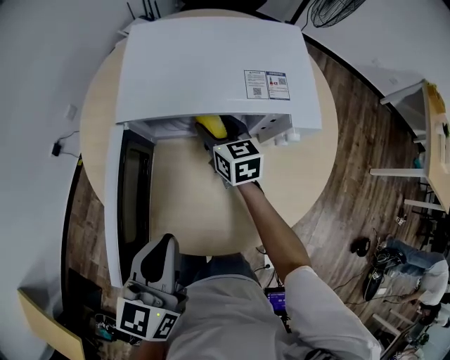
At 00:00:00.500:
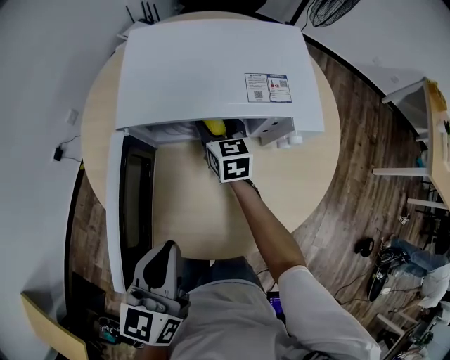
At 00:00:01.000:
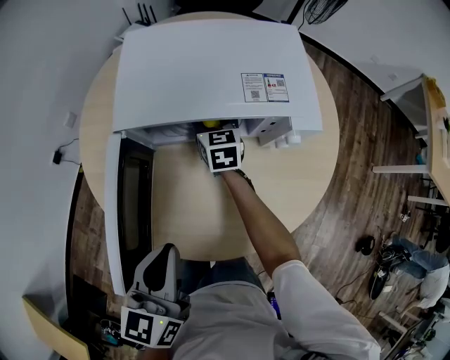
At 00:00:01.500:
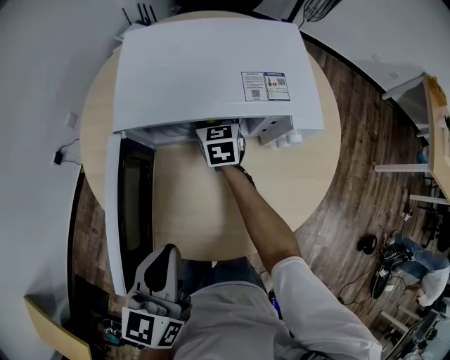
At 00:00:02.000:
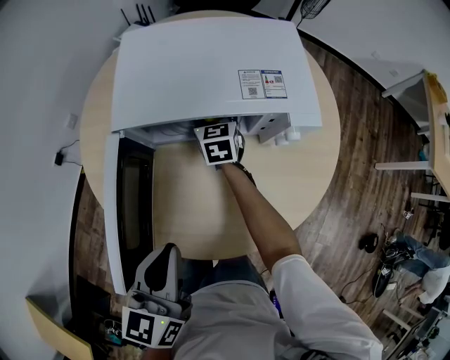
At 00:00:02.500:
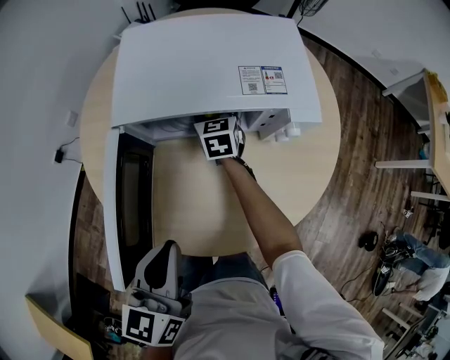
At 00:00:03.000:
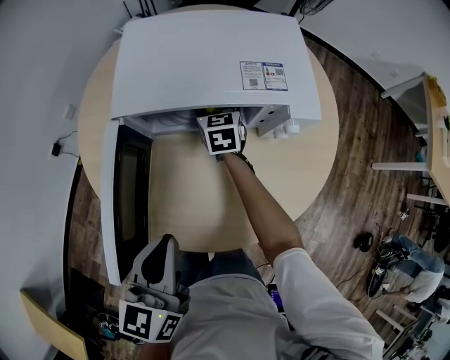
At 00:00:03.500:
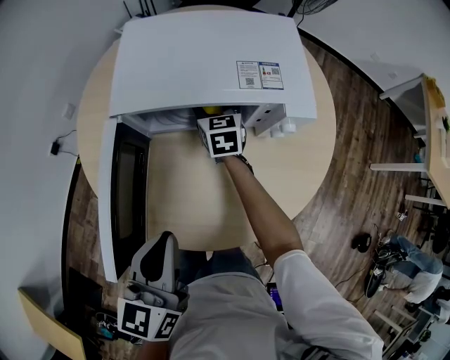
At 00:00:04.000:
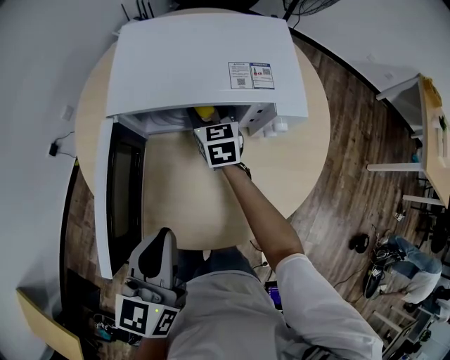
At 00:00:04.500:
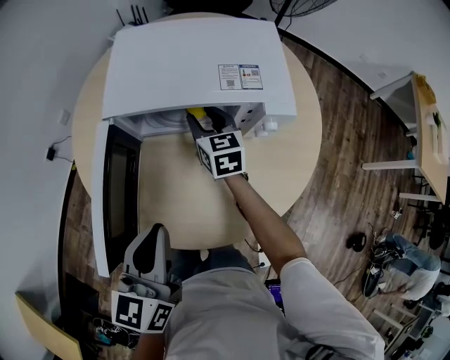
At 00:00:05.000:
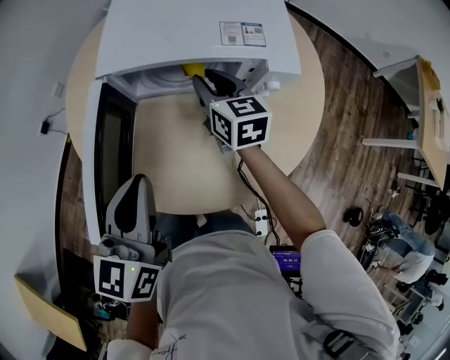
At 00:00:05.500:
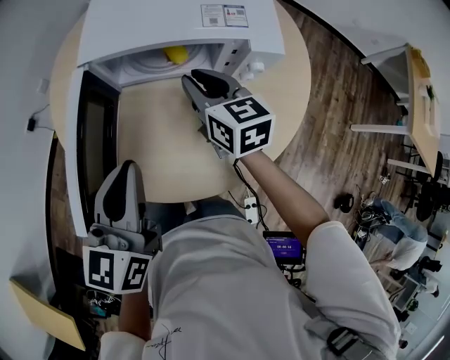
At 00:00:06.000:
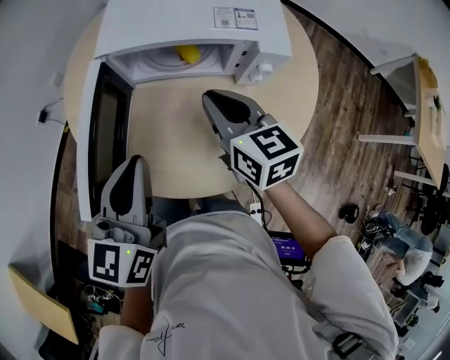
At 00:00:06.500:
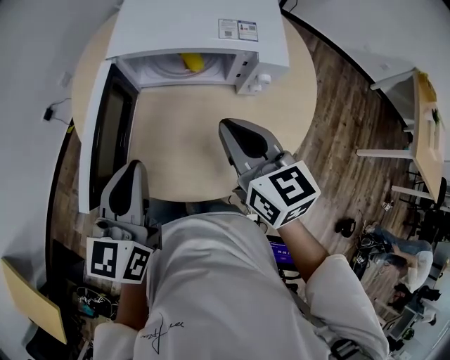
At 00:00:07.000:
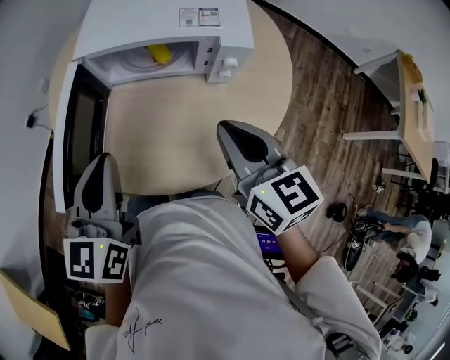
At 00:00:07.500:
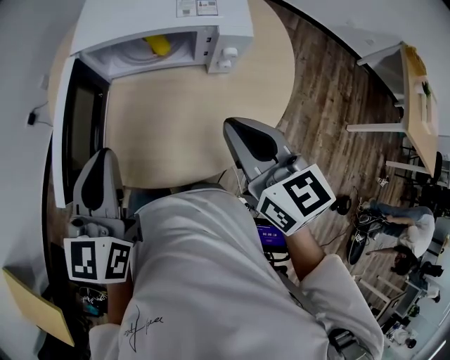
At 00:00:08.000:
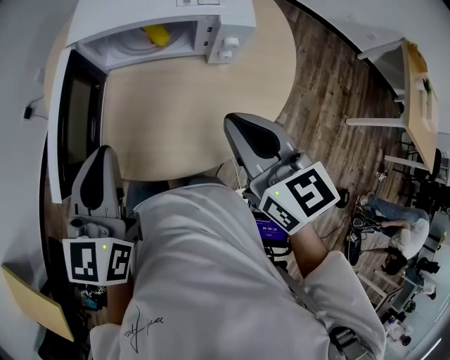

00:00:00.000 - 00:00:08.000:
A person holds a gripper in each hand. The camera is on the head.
00:00:00.000 - 00:00:02.000: The right gripper is displaced forward by roughly 5 cm.
00:00:02.000 - 00:00:04.000: The right gripper ends up about 5 cm from where it was.
00:00:04.000 - 00:00:06.000: The right gripper shifts some 25 cm backward and upward, and closes up.
00:00:06.000 - 00:00:08.000: The right gripper goes about 15 cm backward, to the right and upward.

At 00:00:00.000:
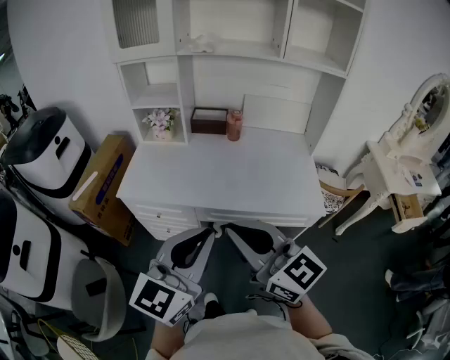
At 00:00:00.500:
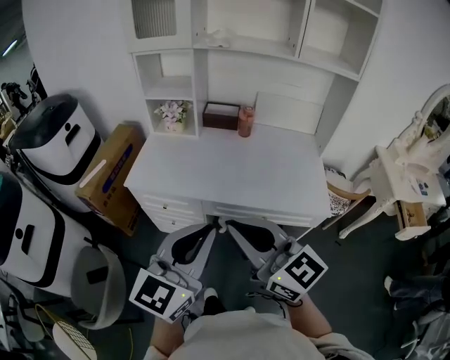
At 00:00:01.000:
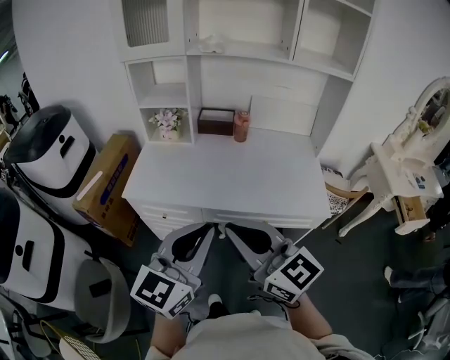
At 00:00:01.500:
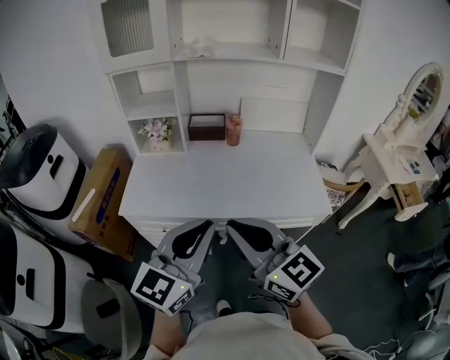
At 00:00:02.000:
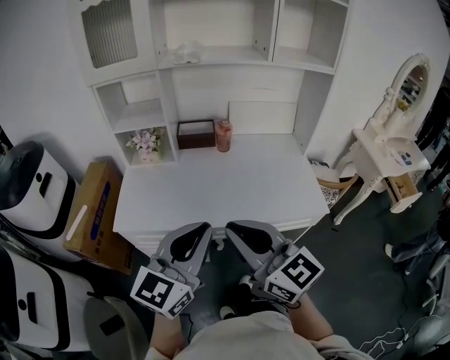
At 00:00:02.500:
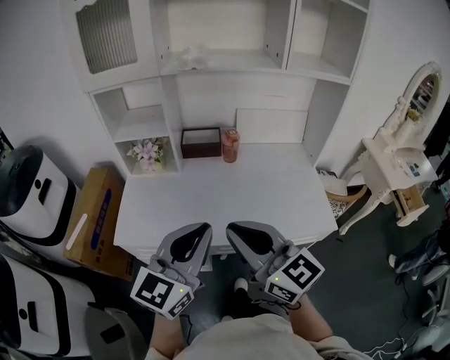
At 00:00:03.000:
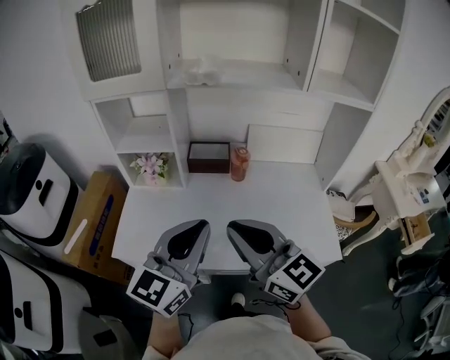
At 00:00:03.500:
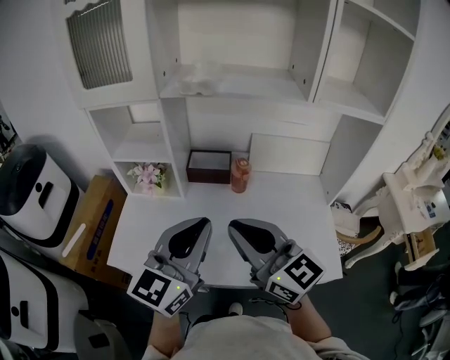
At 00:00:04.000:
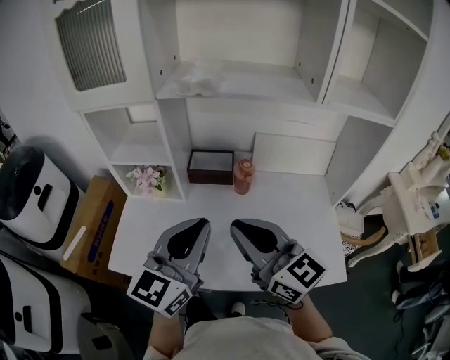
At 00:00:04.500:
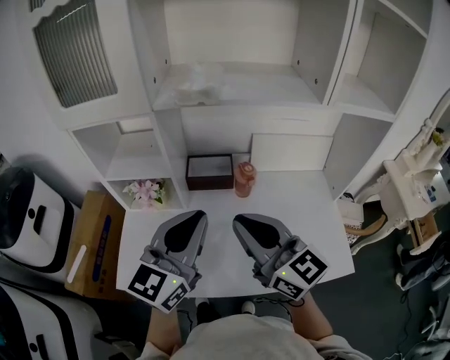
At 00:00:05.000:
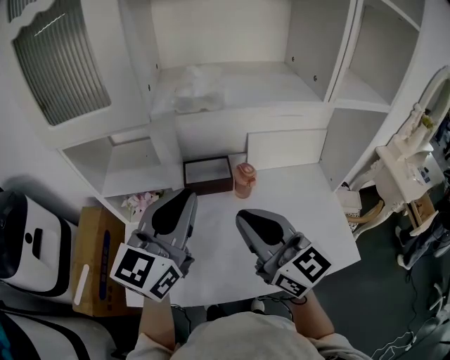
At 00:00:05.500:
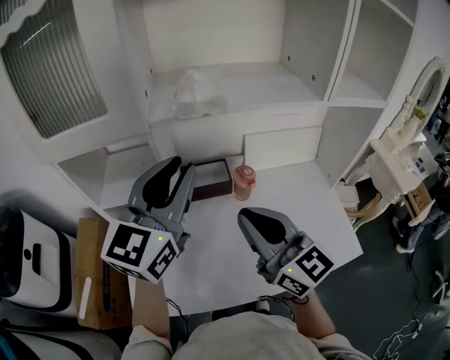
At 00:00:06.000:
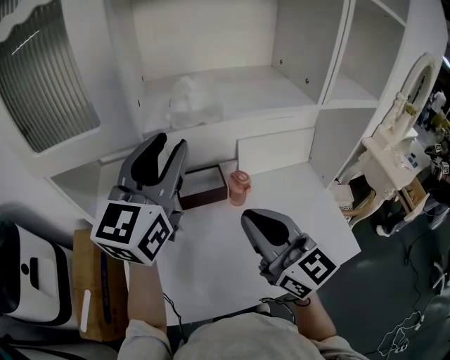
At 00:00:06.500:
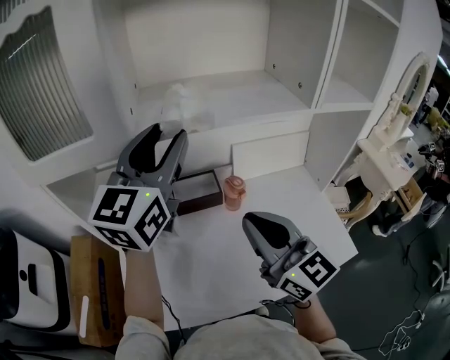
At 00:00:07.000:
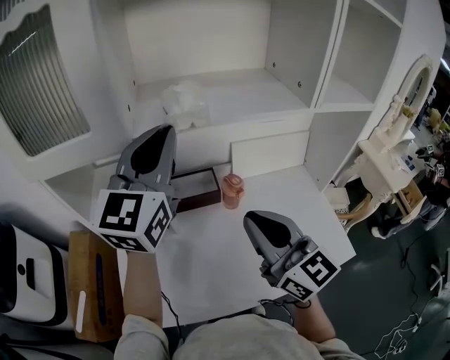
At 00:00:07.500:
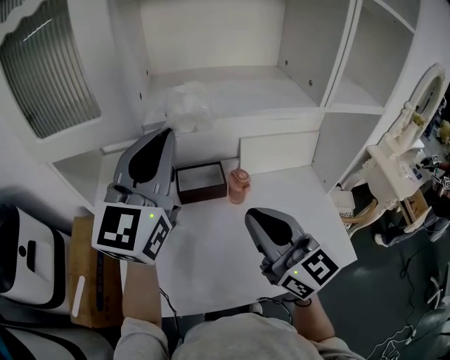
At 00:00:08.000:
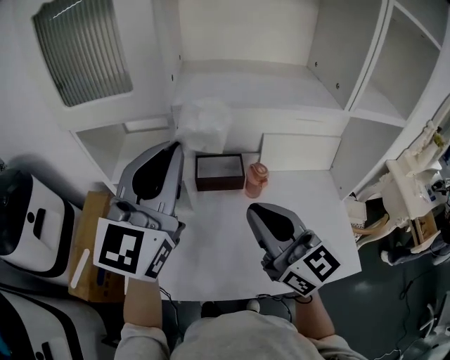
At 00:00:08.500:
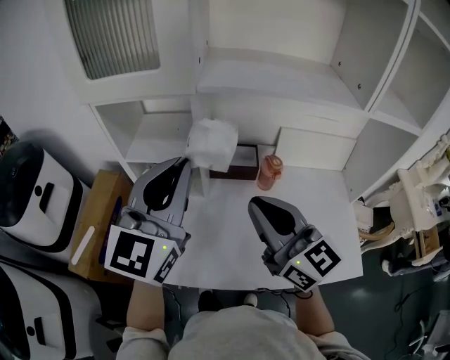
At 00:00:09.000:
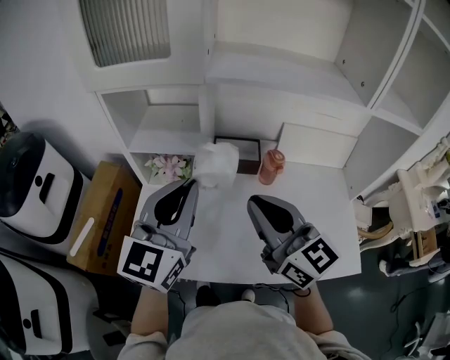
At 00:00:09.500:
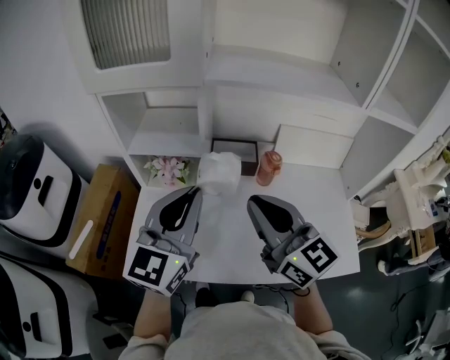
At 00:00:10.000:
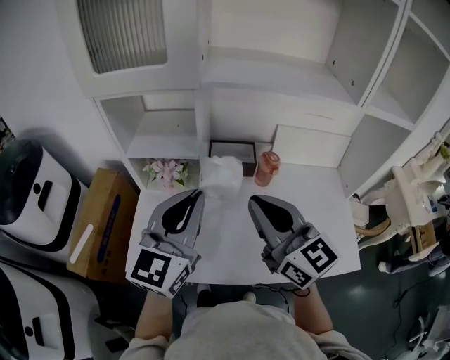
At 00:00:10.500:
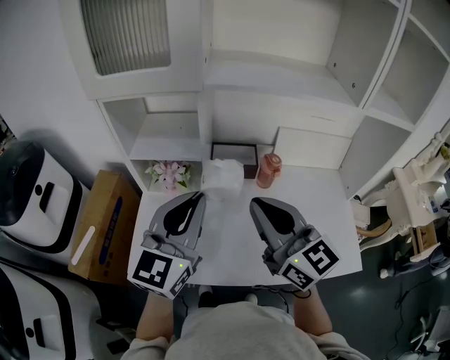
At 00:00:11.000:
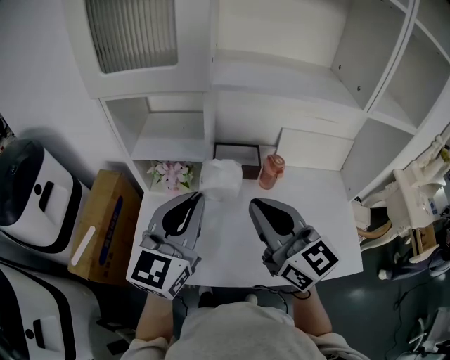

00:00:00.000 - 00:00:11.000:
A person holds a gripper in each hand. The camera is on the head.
00:00:00.000 - 00:00:02.000: Both grippers travel together forward, some 10 cm.
00:00:02.000 - 00:00:03.500: The two grippers go approximately 25 cm forward.
00:00:03.500 - 00:00:05.500: The right gripper is displaced forward and to the left by about 15 cm. Meanwhile the left gripper moves forward and upward, some 20 cm.
00:00:05.500 - 00:00:07.500: The left gripper shifts some 5 cm upward, and opens and closes again.
00:00:07.500 - 00:00:09.000: The left gripper moves downward, backward and to the left, roughly 20 cm. Meanwhile the right gripper heads to the left, covering roughly 5 cm.
00:00:09.000 - 00:00:11.000: There are only small adjustments of the grippers.

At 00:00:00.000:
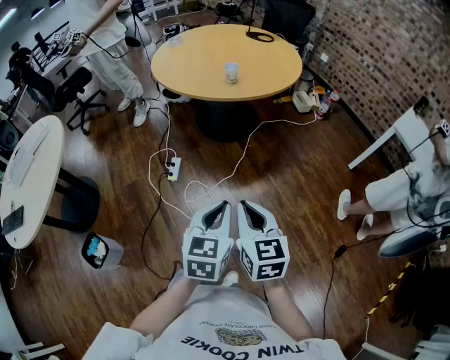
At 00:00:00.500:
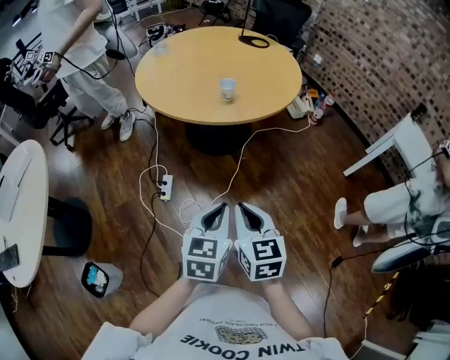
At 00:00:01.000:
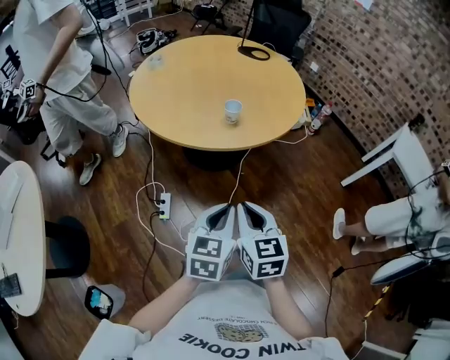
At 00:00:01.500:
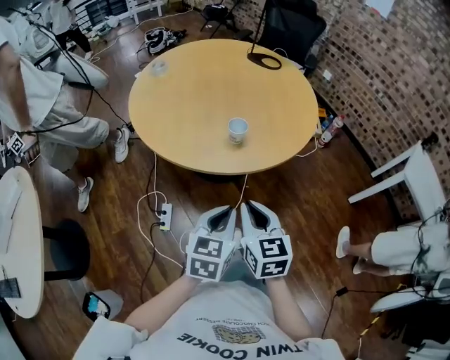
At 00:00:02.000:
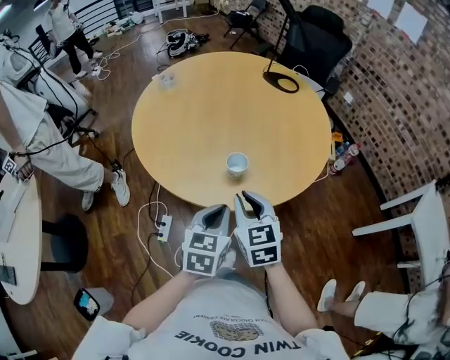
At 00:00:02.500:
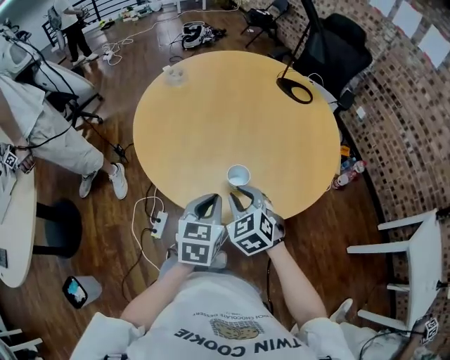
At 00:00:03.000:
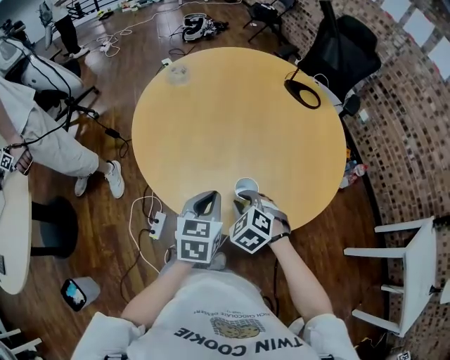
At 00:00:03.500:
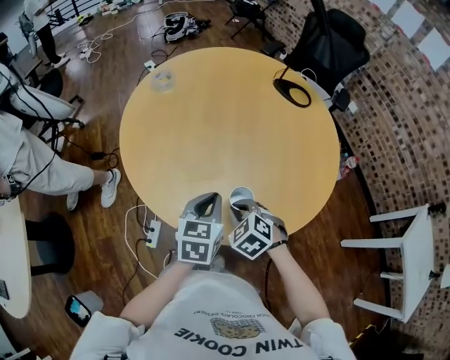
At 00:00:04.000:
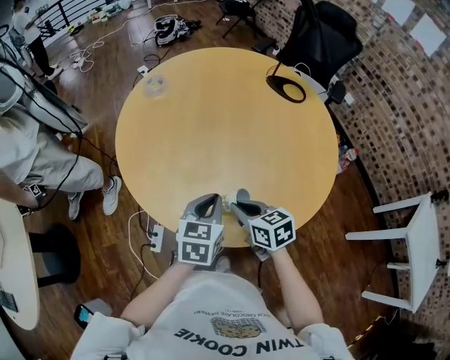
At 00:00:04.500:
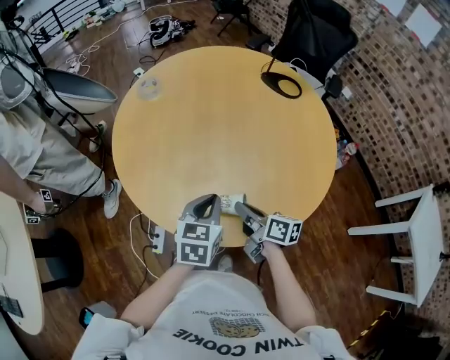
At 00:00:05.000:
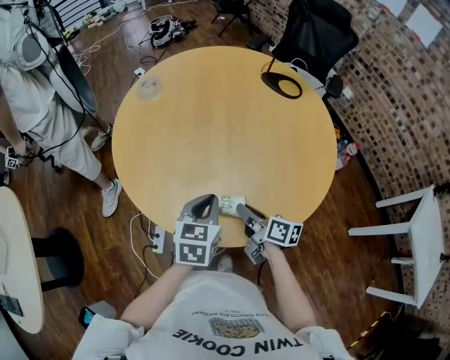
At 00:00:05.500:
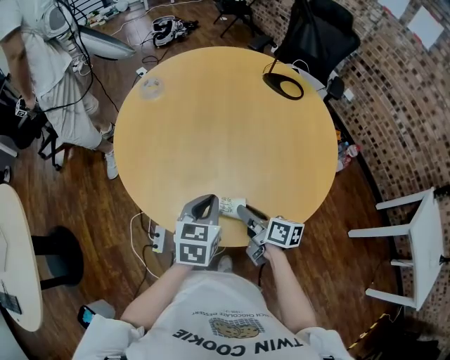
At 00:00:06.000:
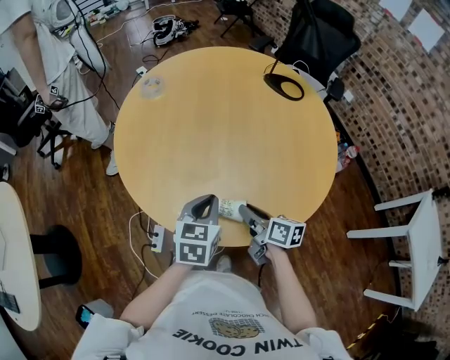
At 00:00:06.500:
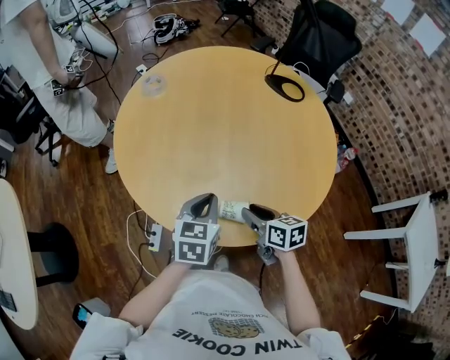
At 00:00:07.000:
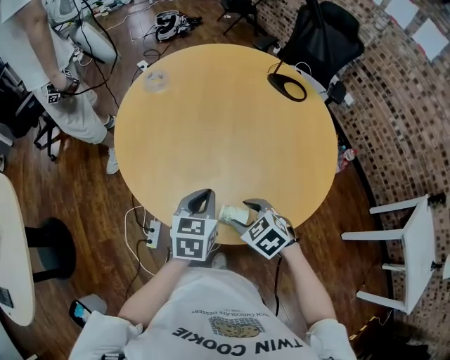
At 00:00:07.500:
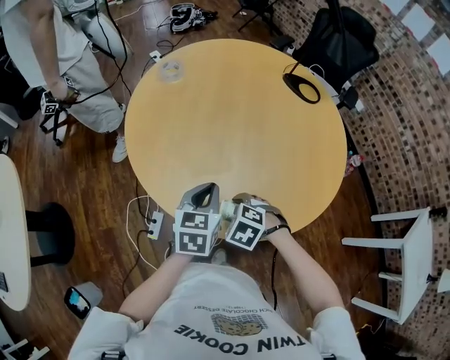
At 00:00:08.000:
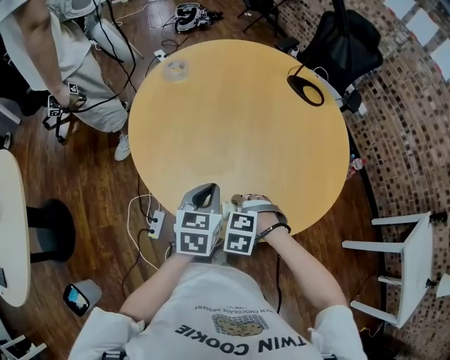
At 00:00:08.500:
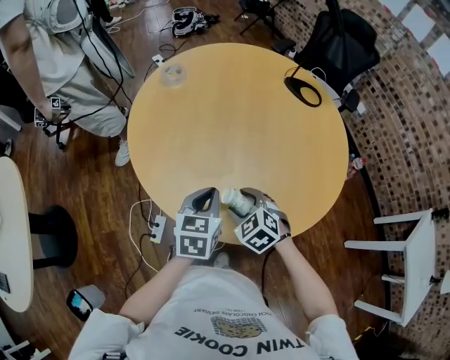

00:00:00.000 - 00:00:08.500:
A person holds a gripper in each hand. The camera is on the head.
00:00:00.000 - 00:00:02.000: The pair of grippers is taken forward, approximately 60 cm.
00:00:02.000 - 00:00:04.000: The right gripper moves forward and downward, approximately 15 cm, and turns by approximately 30 degrees. Meanwhile the left gripper shifts some 20 cm forward.
00:00:04.000 - 00:00:06.500: The right gripper moves to the right, about 5 cm, and opens up.
00:00:06.500 - 00:00:08.500: The right gripper moves approximately 10 cm, twists approximately 60 degrees counterclockwise, seen from behind, and opens up.
